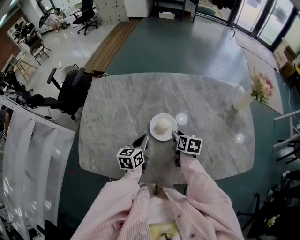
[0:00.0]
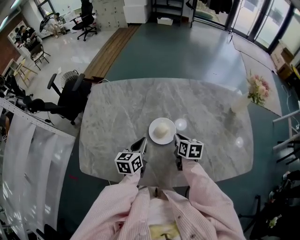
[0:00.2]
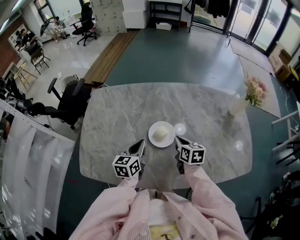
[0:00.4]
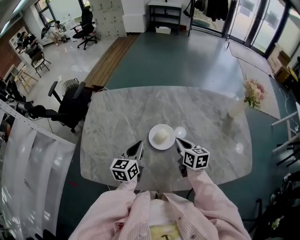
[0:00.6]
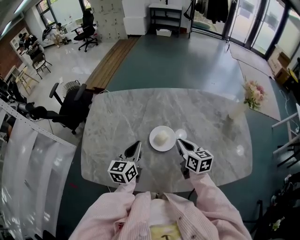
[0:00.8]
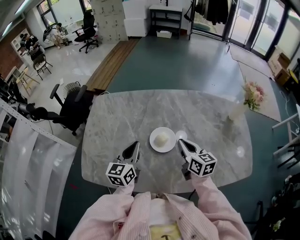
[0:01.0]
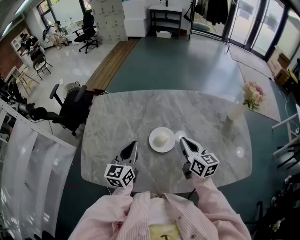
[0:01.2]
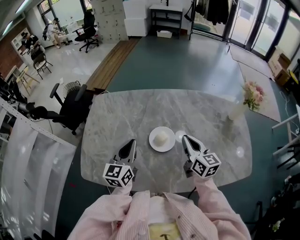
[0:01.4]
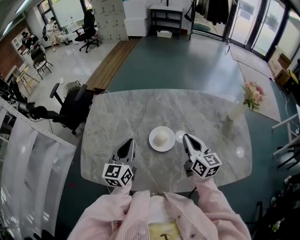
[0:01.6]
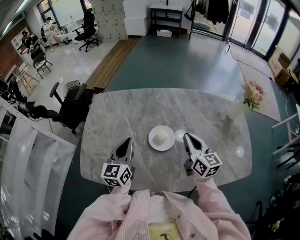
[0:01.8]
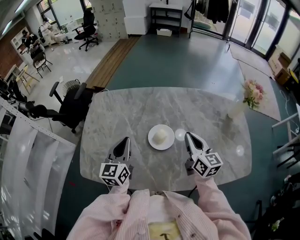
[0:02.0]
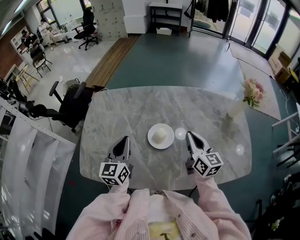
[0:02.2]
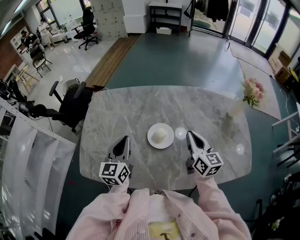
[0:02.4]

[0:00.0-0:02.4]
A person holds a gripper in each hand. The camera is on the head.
0:00.0 to 0:01.2: The grippers both shift upward by approximately 15 cm. The left gripper changes its angle by some 20 degrees. The right gripper angles its fingers upward, by roughly 30 degrees, and closes up.
0:01.2 to 0:02.4: The grippers move only a little.

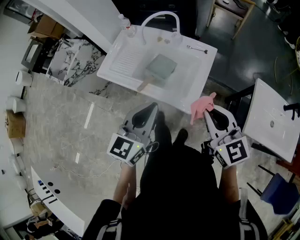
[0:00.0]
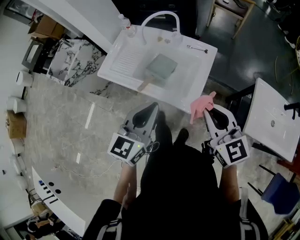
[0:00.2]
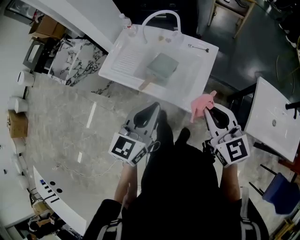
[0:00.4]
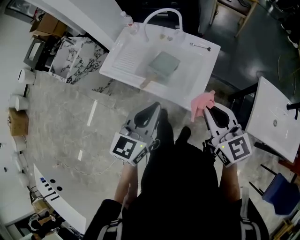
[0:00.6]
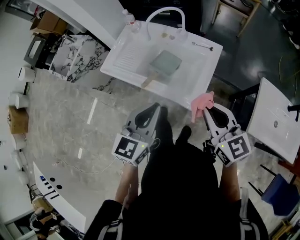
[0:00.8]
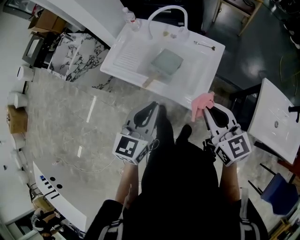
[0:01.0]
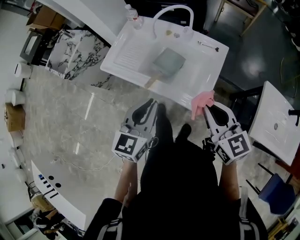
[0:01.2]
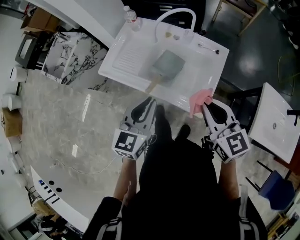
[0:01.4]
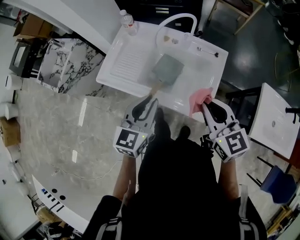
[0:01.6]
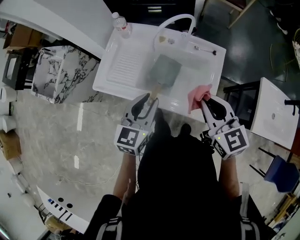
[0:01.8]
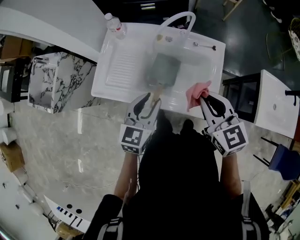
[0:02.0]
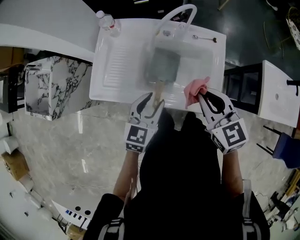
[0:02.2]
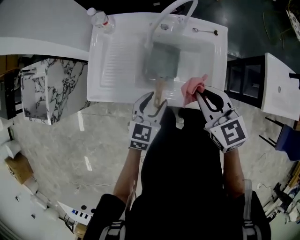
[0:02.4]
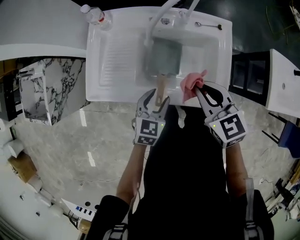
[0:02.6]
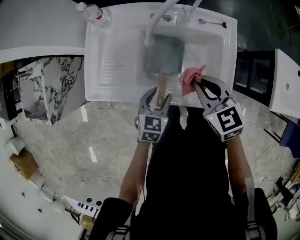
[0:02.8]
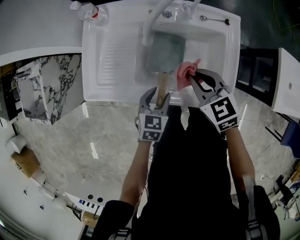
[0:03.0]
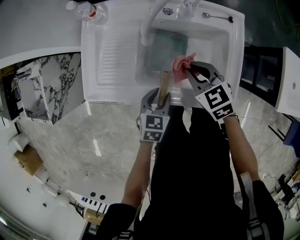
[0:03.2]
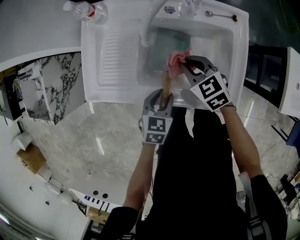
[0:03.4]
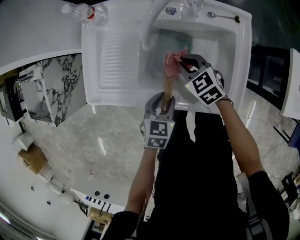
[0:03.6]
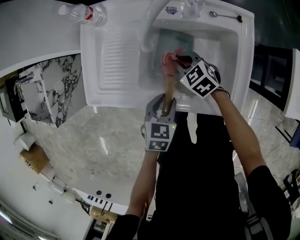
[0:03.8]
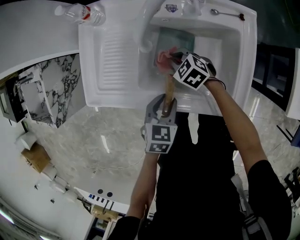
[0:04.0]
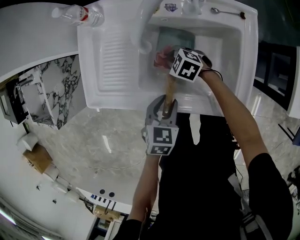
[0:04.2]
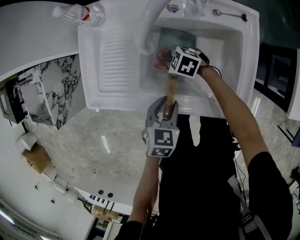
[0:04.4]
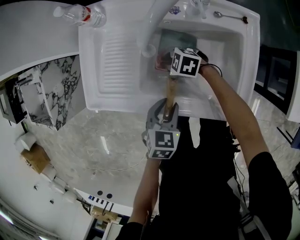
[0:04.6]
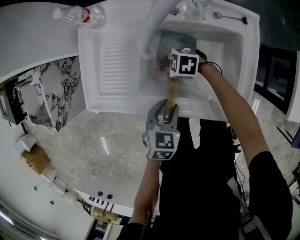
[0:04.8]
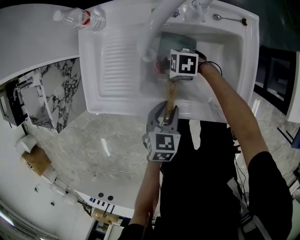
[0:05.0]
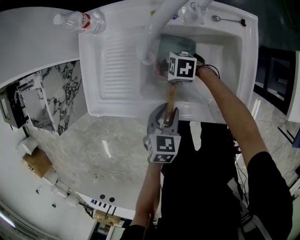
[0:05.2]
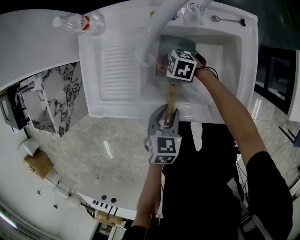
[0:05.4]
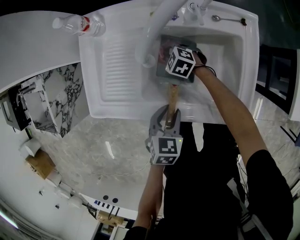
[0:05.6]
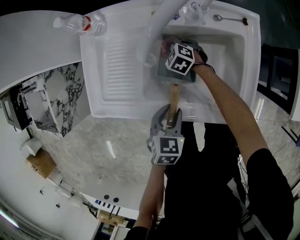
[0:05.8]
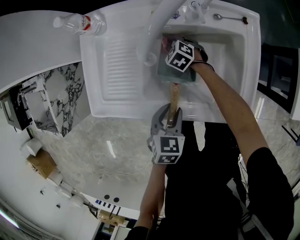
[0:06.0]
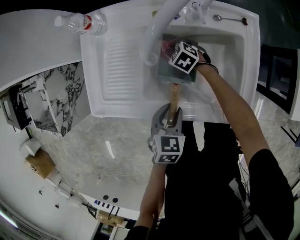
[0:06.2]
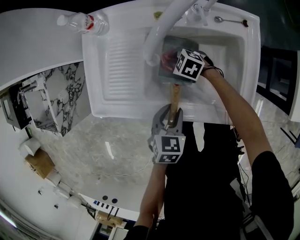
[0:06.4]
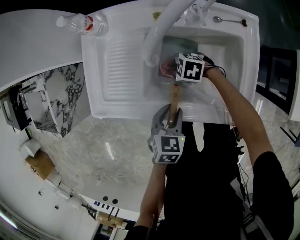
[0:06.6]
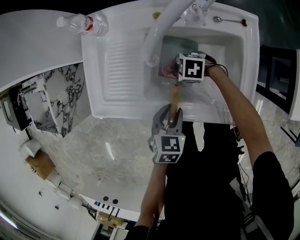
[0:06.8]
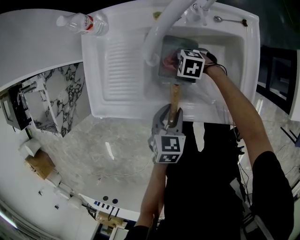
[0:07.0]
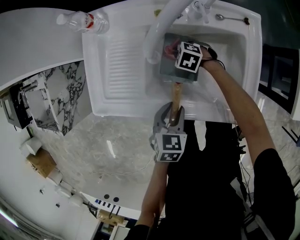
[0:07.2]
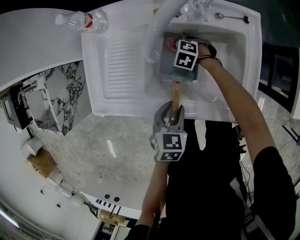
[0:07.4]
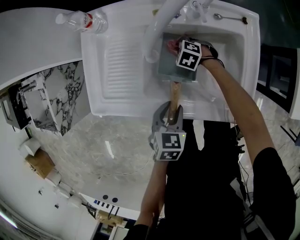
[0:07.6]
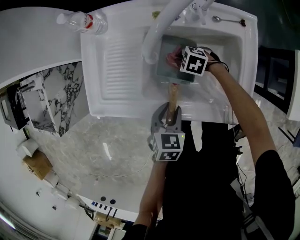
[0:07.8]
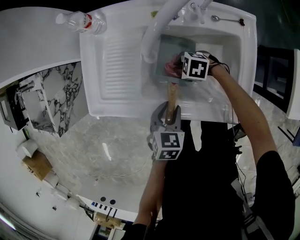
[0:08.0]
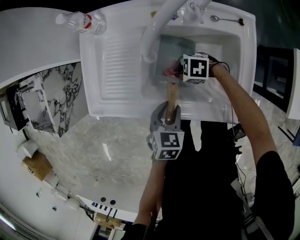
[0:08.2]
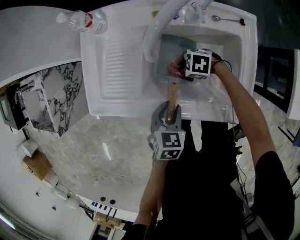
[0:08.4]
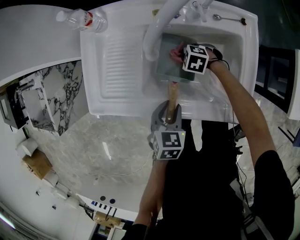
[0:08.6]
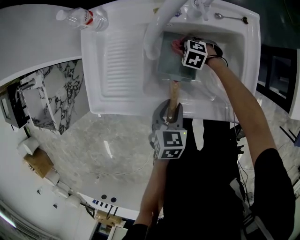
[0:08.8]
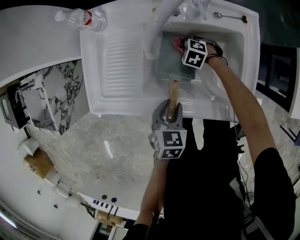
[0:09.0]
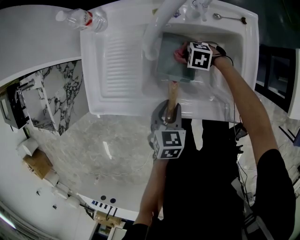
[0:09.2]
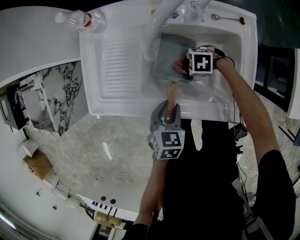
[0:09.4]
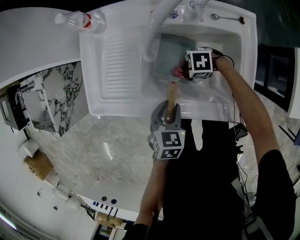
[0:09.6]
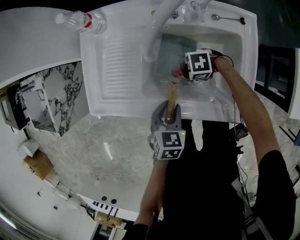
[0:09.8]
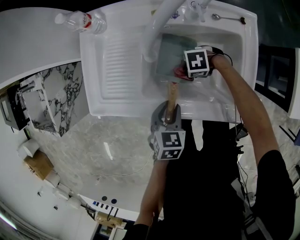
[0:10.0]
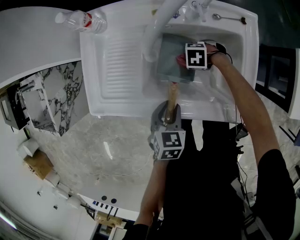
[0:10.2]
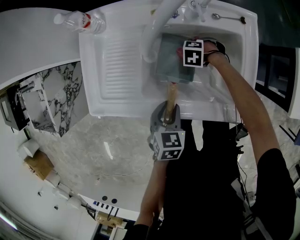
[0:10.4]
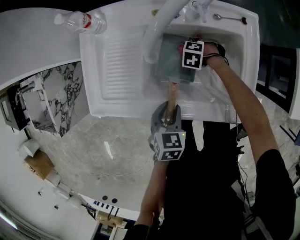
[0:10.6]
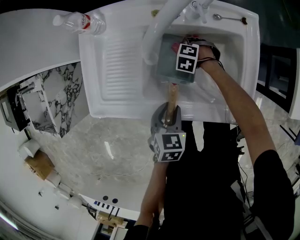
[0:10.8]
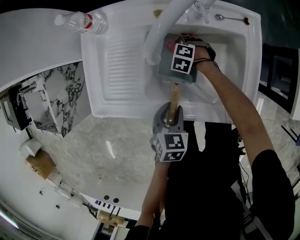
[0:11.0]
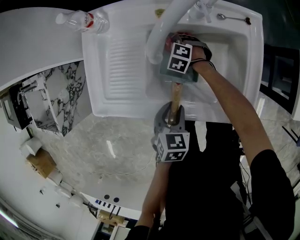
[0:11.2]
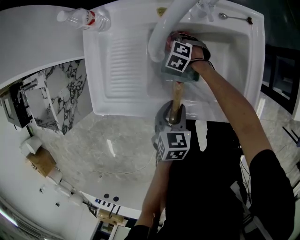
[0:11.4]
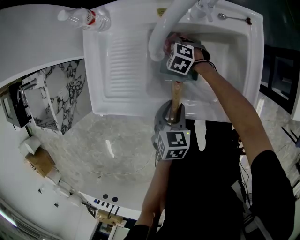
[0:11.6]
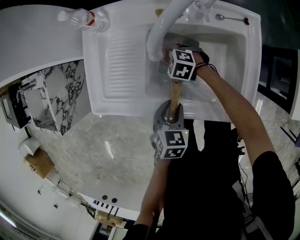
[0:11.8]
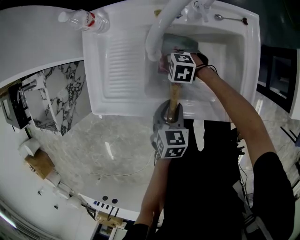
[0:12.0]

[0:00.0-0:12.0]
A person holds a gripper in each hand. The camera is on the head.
0:00.0 to 0:01.6: The right gripper is displaced forward and to the left by about 15 cm; the left gripper goes approximately 15 cm forward, to the left and downward.
0:01.6 to 0:03.0: The left gripper moves downward, about 25 cm, changes its angle by about 30 degrees, and opens its fingers; the right gripper moves downward, forward and to the left, about 25 cm, and changes its angle by roughly 20 degrees.
0:03.0 to 0:04.4: The right gripper is displaced downward and to the left by about 25 cm, and turns by roughly 40 degrees.
0:04.4 to 0:06.0: The right gripper changes place by approximately 10 cm, and changes its angle by roughly 30 degrees.
0:10.4 to 0:12.0: The right gripper ends up about 15 cm from where it was, and changes its angle by some 20 degrees.

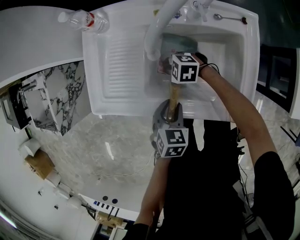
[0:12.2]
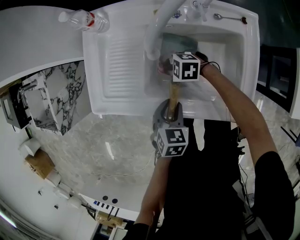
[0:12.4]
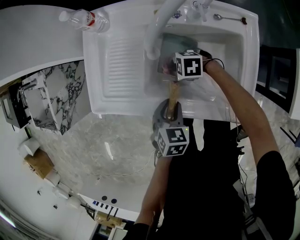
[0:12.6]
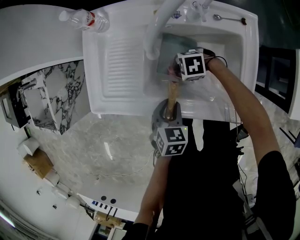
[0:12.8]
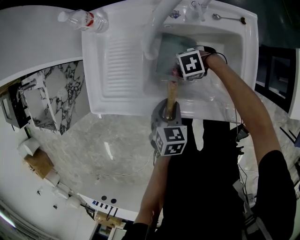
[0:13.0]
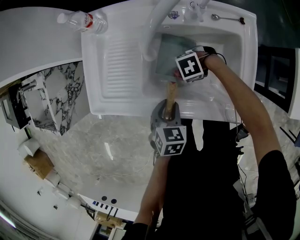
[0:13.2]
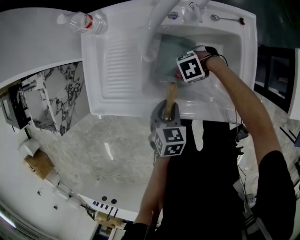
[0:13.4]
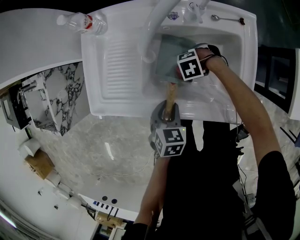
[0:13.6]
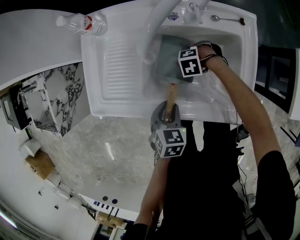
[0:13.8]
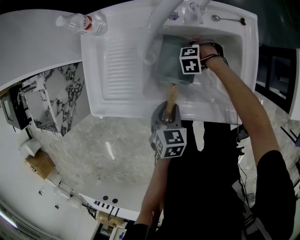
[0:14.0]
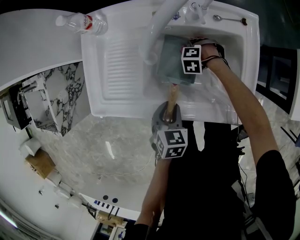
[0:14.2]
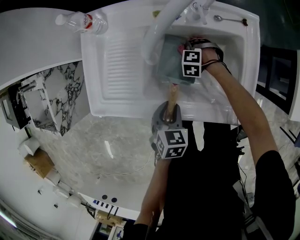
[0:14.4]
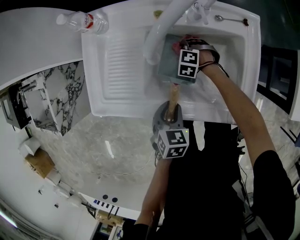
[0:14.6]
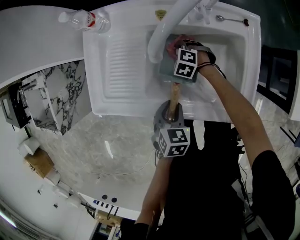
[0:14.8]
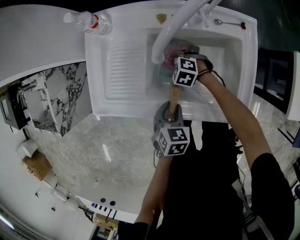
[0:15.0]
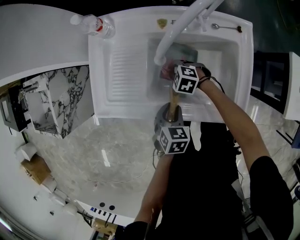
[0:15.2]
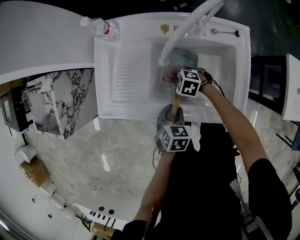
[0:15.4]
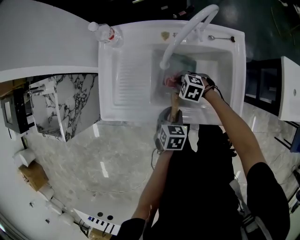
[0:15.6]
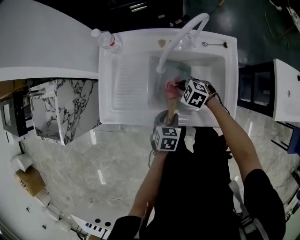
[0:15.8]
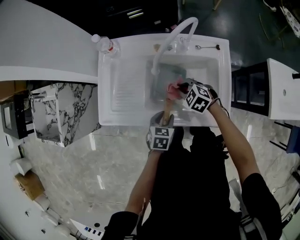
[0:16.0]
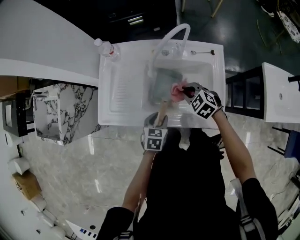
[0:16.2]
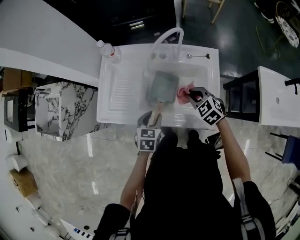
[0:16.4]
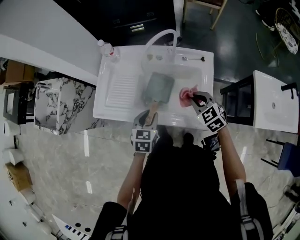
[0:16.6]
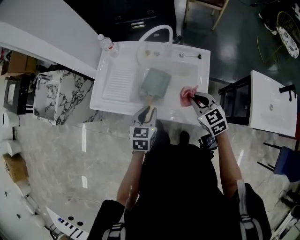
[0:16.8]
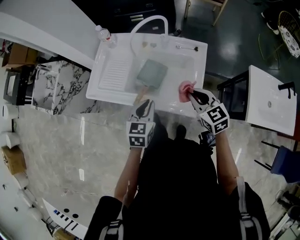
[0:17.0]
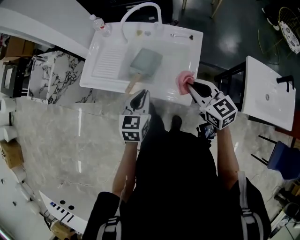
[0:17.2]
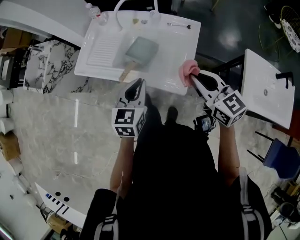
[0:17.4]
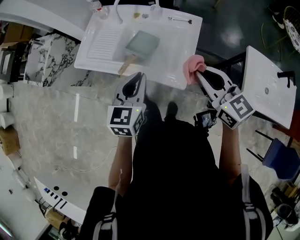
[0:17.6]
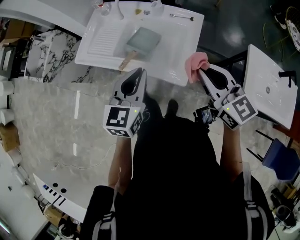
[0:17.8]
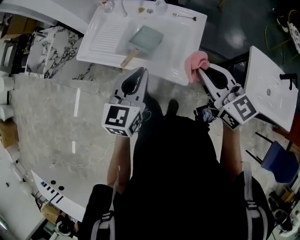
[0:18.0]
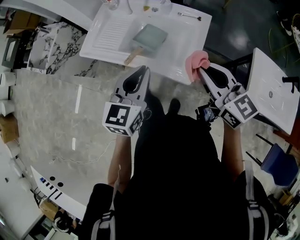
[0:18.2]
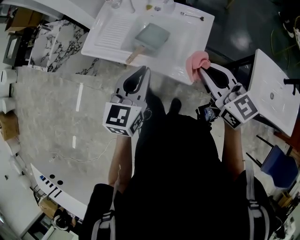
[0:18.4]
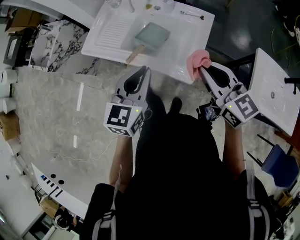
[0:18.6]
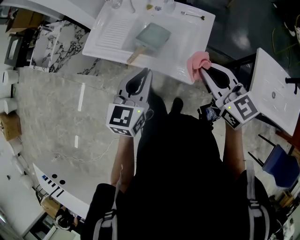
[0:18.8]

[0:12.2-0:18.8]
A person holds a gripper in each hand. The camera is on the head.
0:12.2 to 0:13.8: The right gripper moves some 15 cm, and swivels some 30 degrees.
0:13.8 to 0:15.4: The right gripper ends up approximately 10 cm from where it was, and rotates about 30 degrees.
0:15.4 to 0:17.2: The right gripper shifts about 50 cm upward, to the right and backward, and angles its fingers upward, by about 40 degrees. The left gripper travels upward and backward by about 25 cm, tips its fingers upward by roughly 30 degrees, and closes.
0:17.2 to 0:18.8: The two grippers go some 10 cm upward and backward.

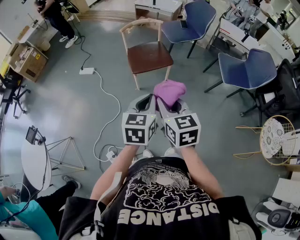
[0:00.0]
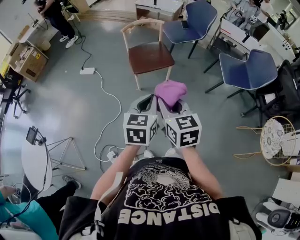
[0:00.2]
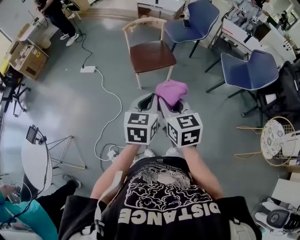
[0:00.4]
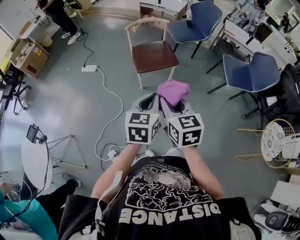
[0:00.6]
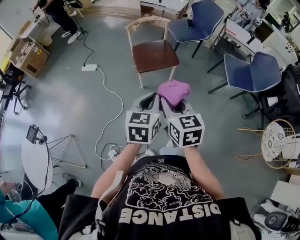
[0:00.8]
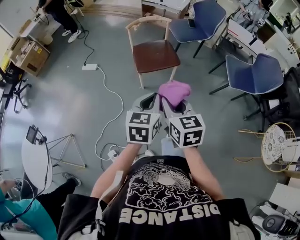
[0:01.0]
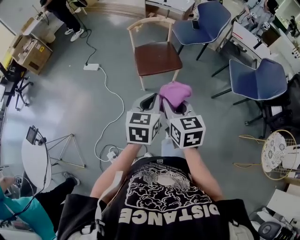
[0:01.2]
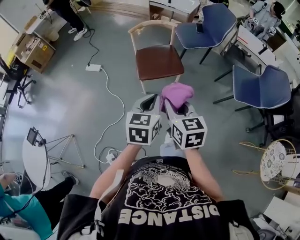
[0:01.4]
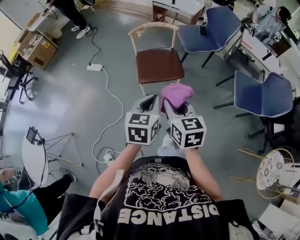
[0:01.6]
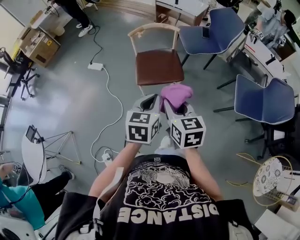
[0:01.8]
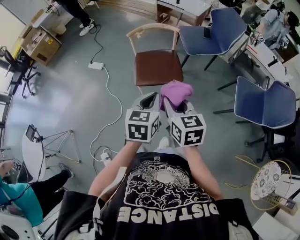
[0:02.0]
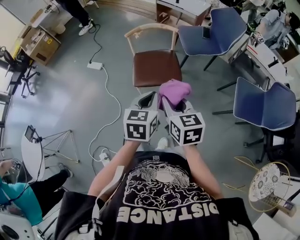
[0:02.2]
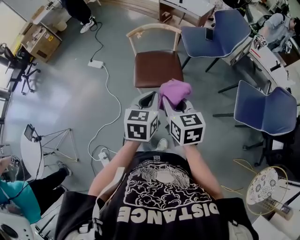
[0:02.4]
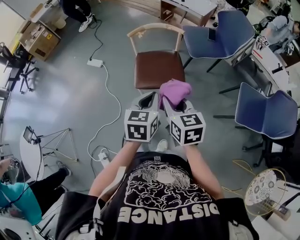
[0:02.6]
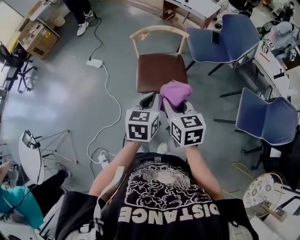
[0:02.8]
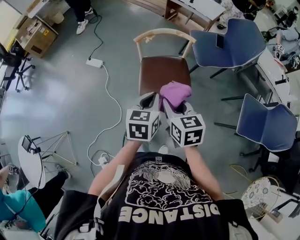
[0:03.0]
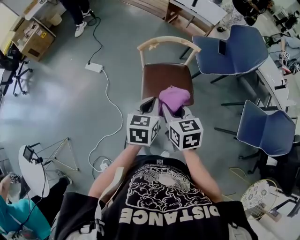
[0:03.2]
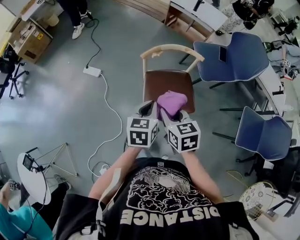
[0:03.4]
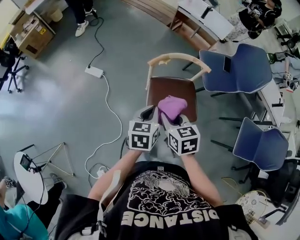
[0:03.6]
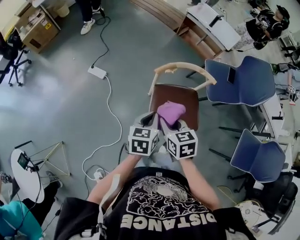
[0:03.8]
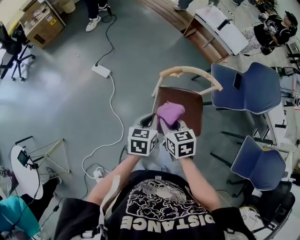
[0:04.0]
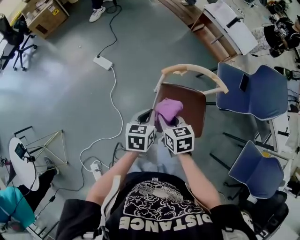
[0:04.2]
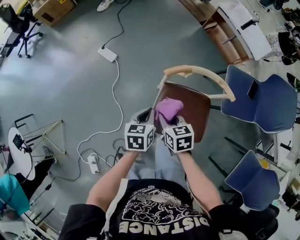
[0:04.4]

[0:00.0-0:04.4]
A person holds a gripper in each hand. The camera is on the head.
0:00.0 to 0:01.4: Both grippers move forward, about 10 cm.
0:01.4 to 0:03.0: Both grippers move forward, some 25 cm.
0:03.0 to 0:04.4: Both grippers travel together forward, downward and to the left, approximately 30 cm. The right gripper turns by some 30 degrees. The left gripper rotates about 20 degrees.
